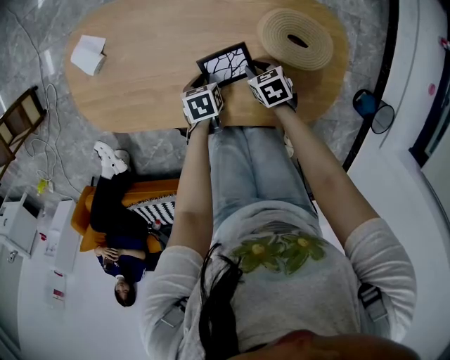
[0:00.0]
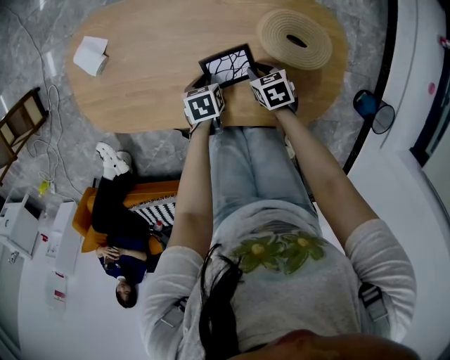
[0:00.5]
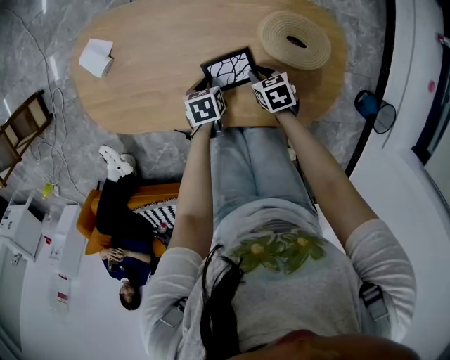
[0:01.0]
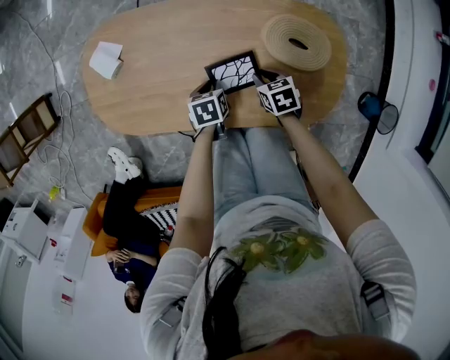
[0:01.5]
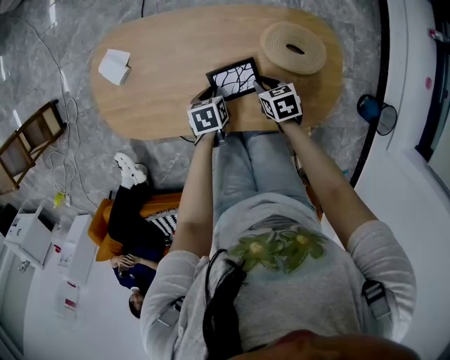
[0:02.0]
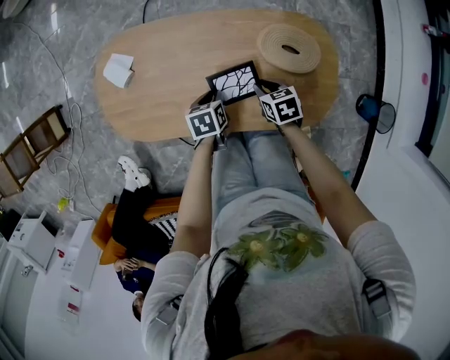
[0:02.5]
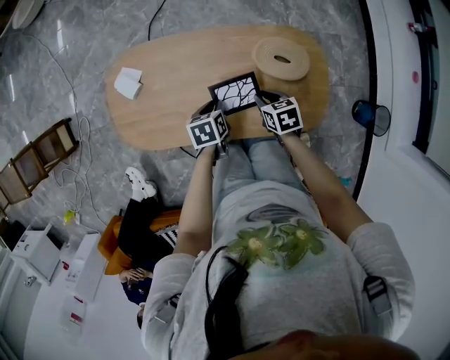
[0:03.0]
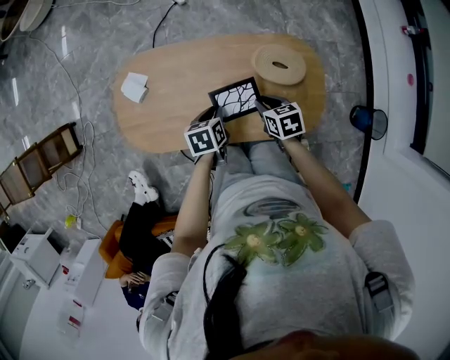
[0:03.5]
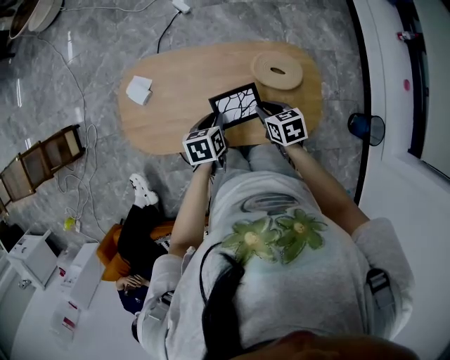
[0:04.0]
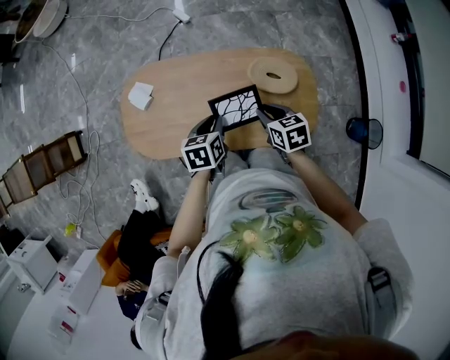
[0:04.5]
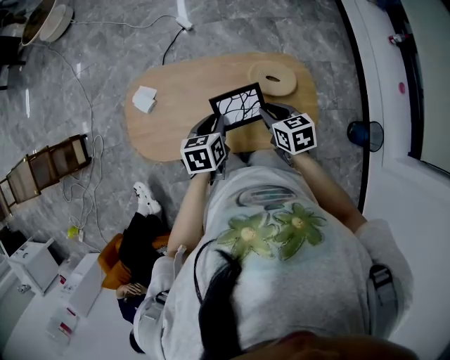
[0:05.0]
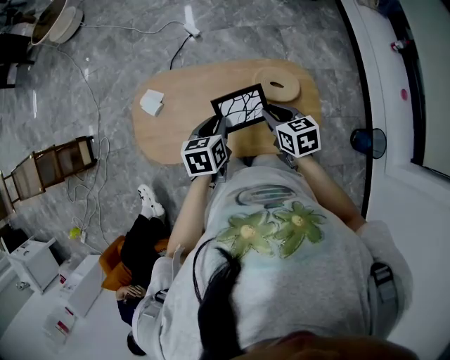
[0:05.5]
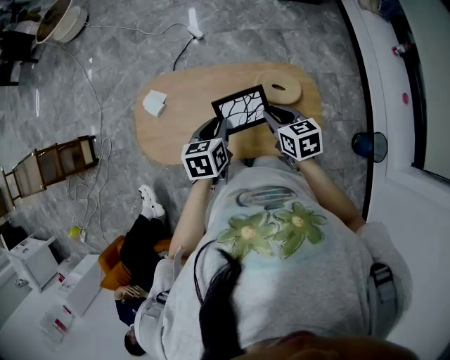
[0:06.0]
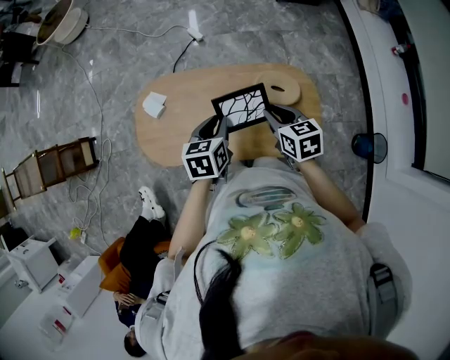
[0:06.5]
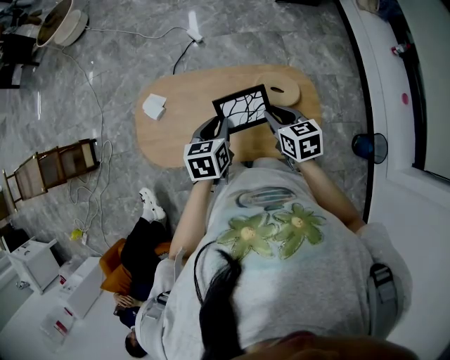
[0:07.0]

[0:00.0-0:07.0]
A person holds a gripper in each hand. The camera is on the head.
0.0 to 2.0 s: The two grippers go about 10 cm upward.
2.0 to 3.5 s: Both grippers travel together upward, about 15 cm.
3.5 to 5.0 s: Both grippers travel together upward, approximately 15 cm.
5.0 to 7.0 s: Both grippers travel together upward, about 5 cm.

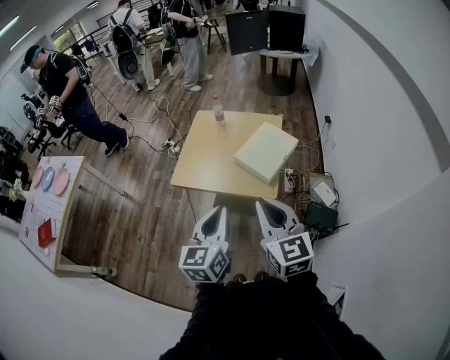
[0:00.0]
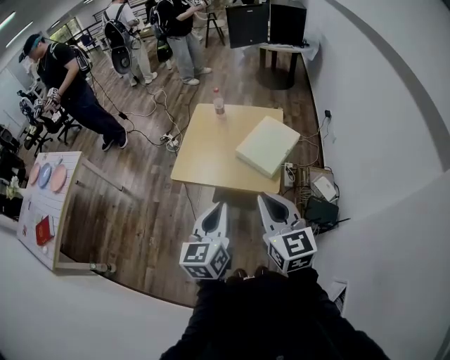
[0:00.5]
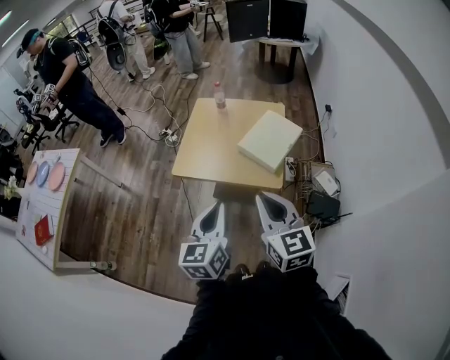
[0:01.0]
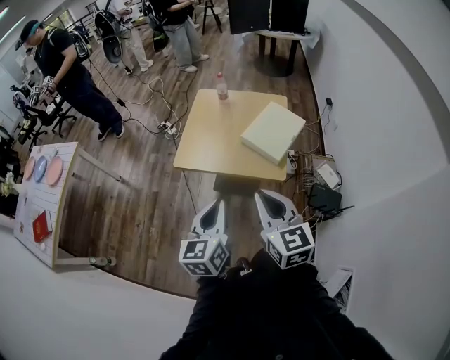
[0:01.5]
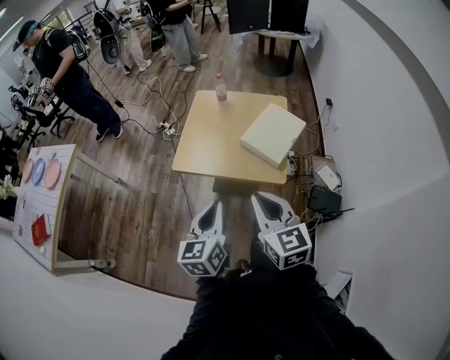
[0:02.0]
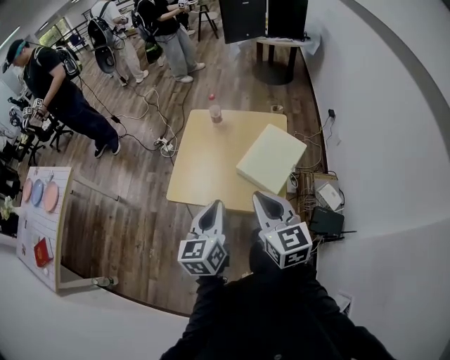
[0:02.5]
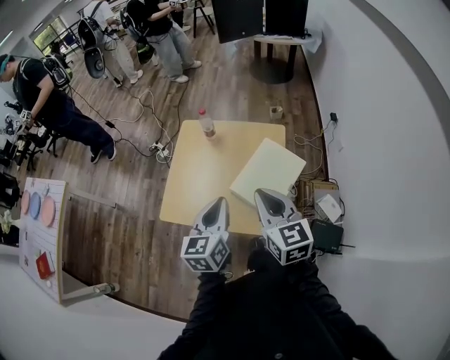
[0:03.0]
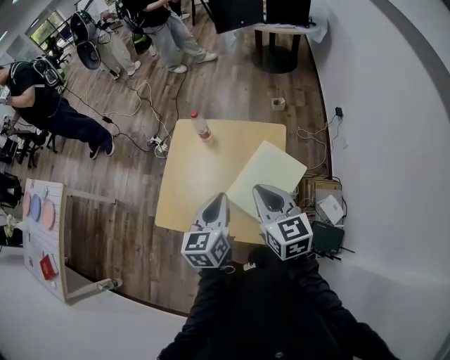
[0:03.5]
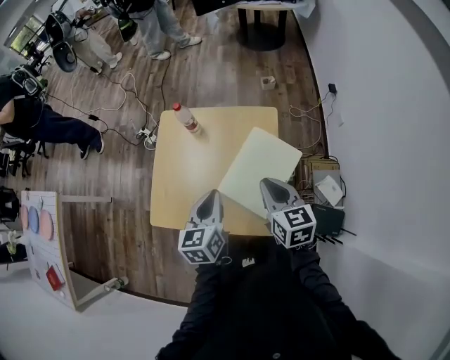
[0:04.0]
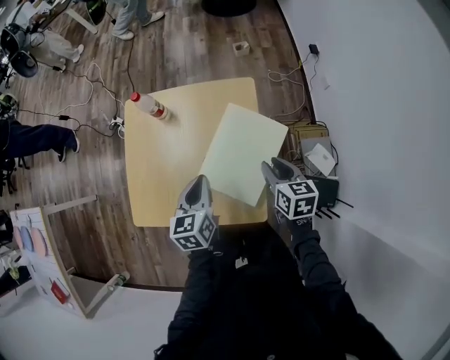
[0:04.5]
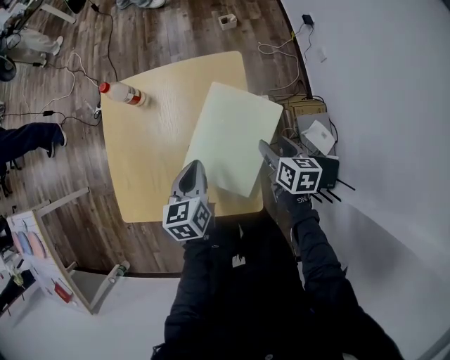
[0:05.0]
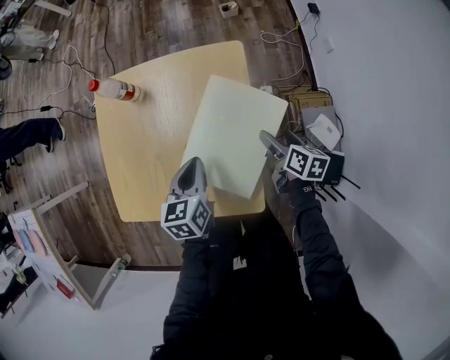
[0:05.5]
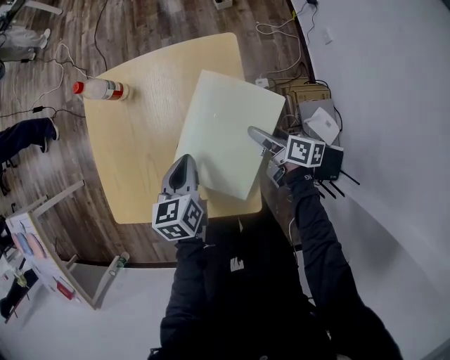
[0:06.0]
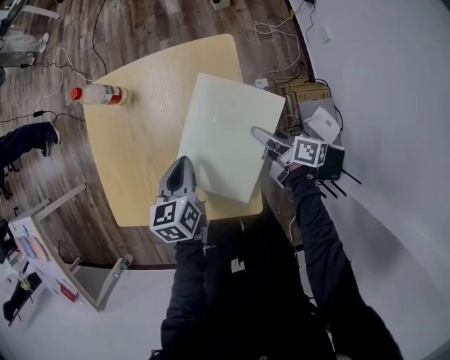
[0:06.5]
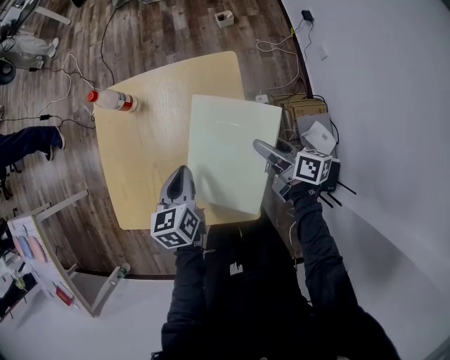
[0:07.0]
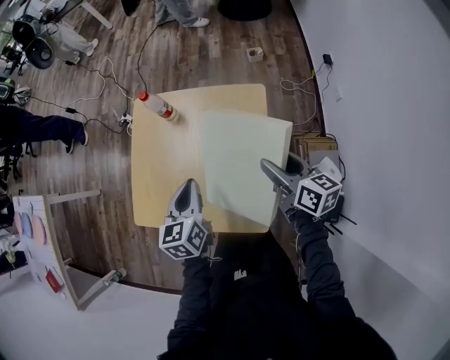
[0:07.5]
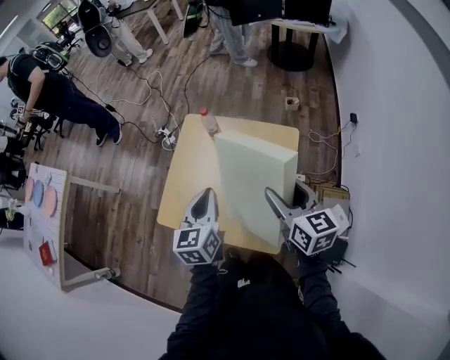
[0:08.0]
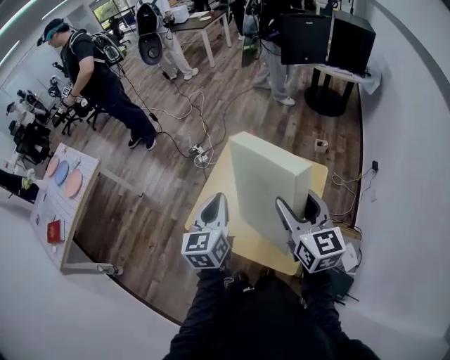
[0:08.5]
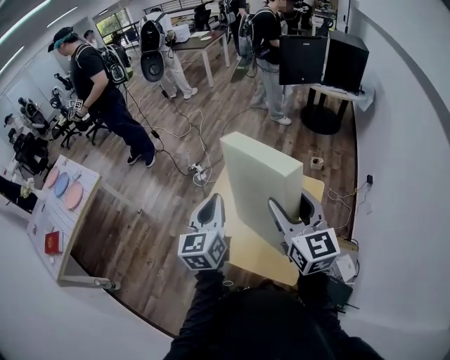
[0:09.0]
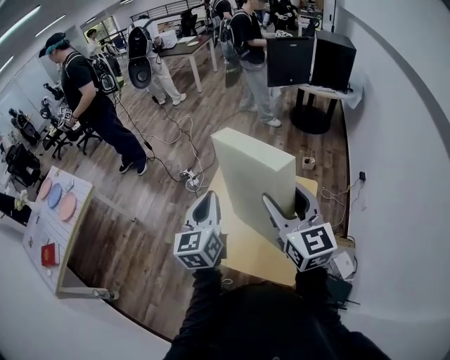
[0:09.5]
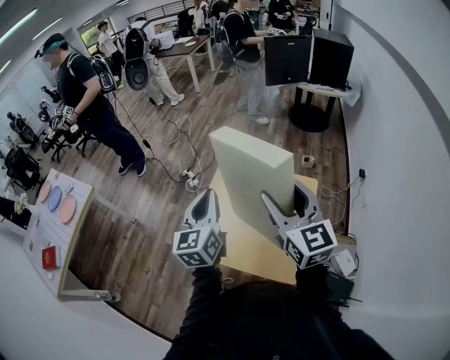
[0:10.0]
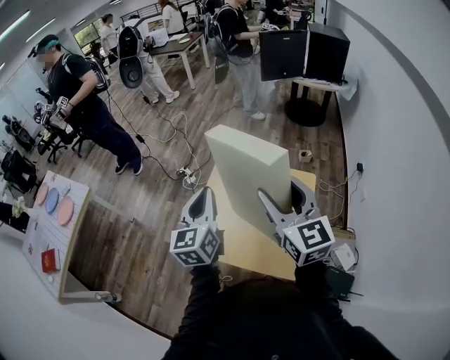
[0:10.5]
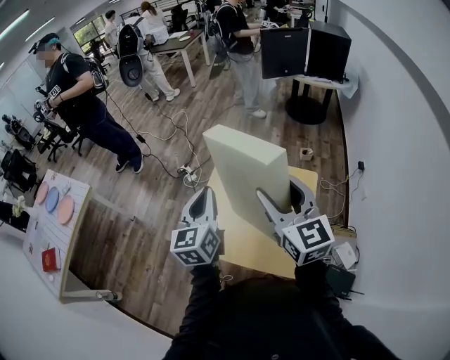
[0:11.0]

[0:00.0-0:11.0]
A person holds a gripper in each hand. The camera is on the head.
0.0 to 2.0 s: The grippers both shift to the left and downward by about 10 cm.
2.0 to 3.5 s: Both grippers move forward and to the right, some 40 cm.
3.5 to 5.5 s: The left gripper heads downward, covering roughly 25 cm, and swivels approximately 20 degrees. Meanwhile the right gripper goes roughly 40 cm downward and to the right, twists roughly 50 degrees clockwise, seen from behind, and opens.
5.5 to 7.5 s: The right gripper goes about 20 cm upward, and changes its angle by about 30 degrees, while the left gripper moves upward and to the left, some 10 cm.
7.5 to 9.0 s: Both grippers travel together upward and to the left, some 35 cm. The right gripper rolls counterclockwise, seen from behind, by about 40 degrees, while the left gripper swivels about 30 degrees.
9.0 to 11.0 s: The grippers move only a little.

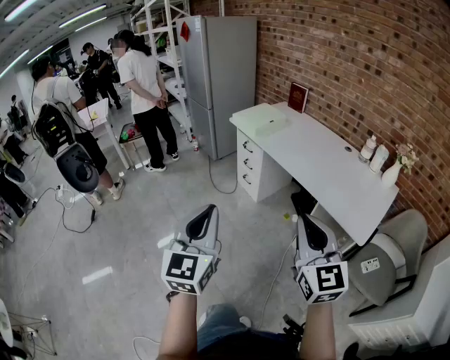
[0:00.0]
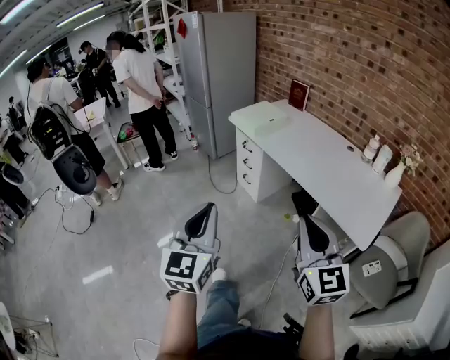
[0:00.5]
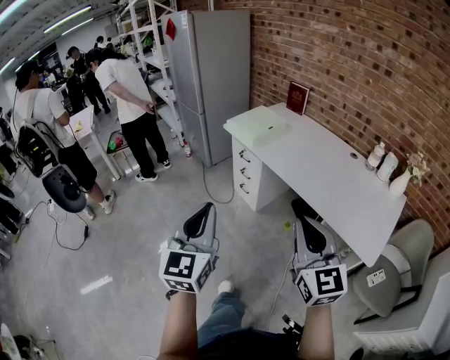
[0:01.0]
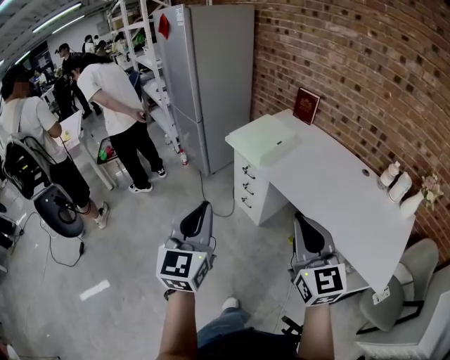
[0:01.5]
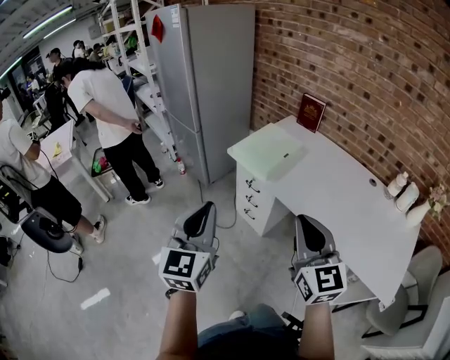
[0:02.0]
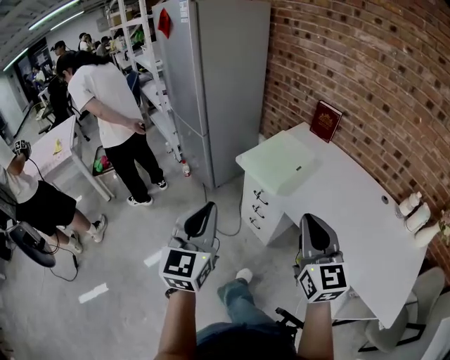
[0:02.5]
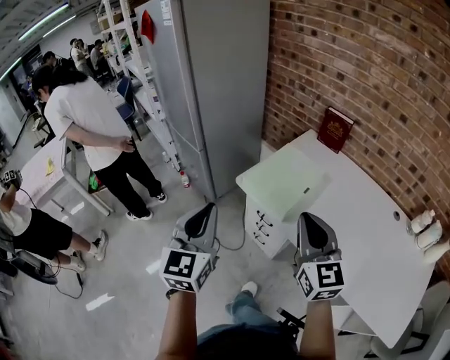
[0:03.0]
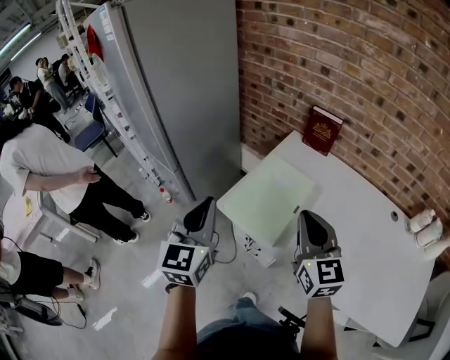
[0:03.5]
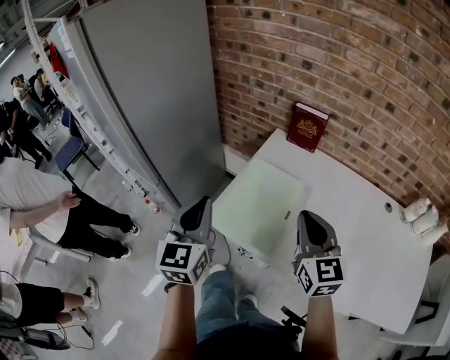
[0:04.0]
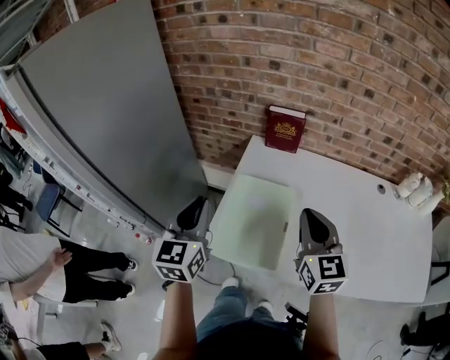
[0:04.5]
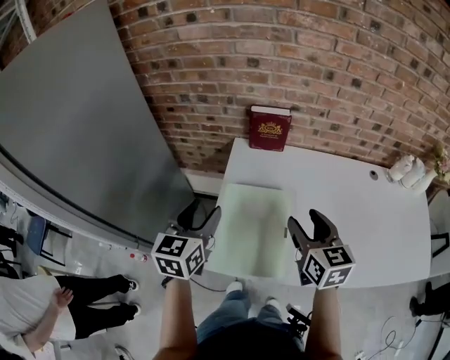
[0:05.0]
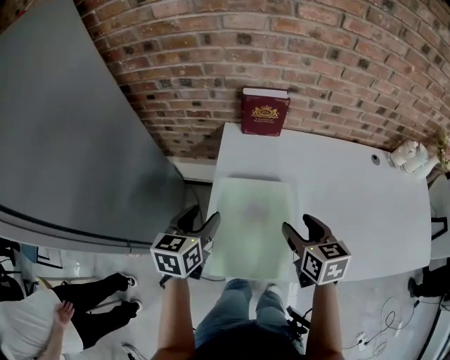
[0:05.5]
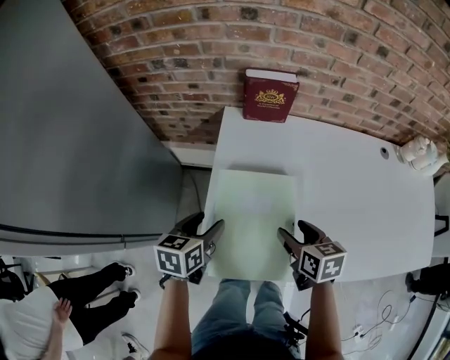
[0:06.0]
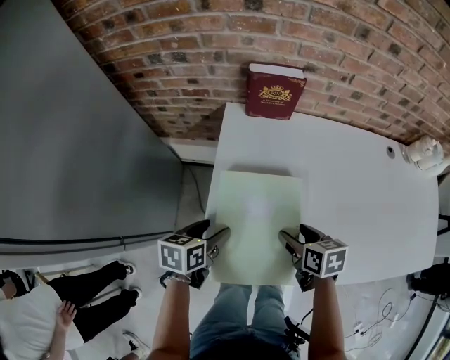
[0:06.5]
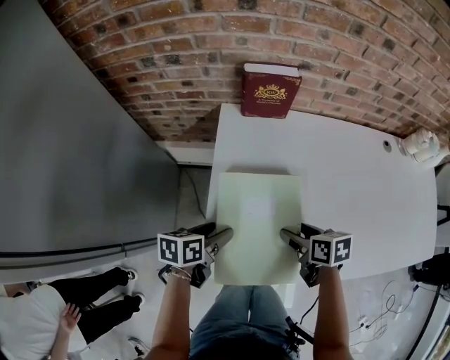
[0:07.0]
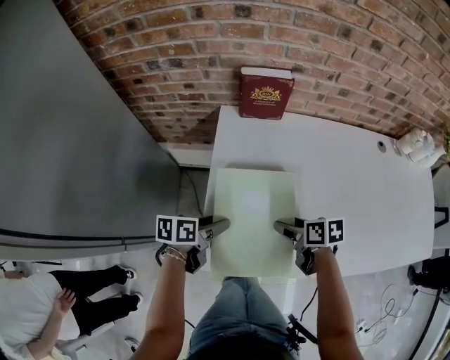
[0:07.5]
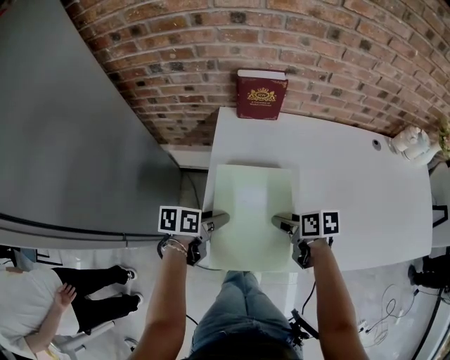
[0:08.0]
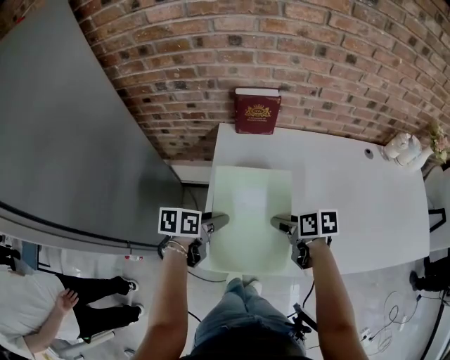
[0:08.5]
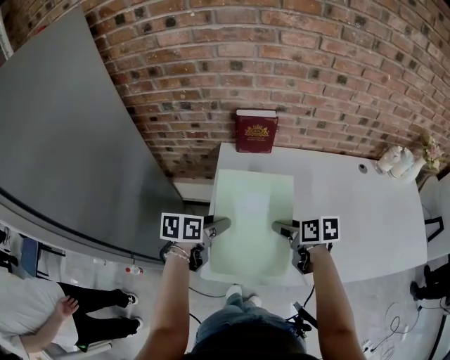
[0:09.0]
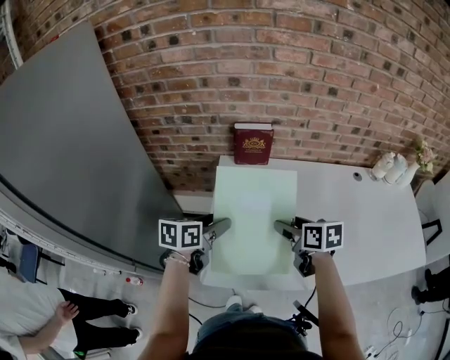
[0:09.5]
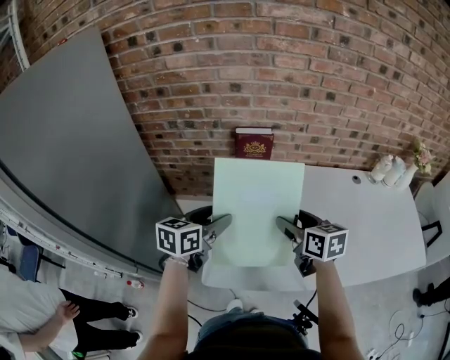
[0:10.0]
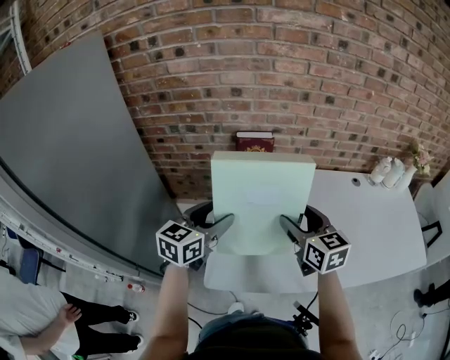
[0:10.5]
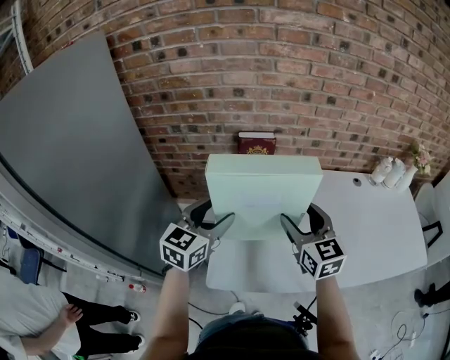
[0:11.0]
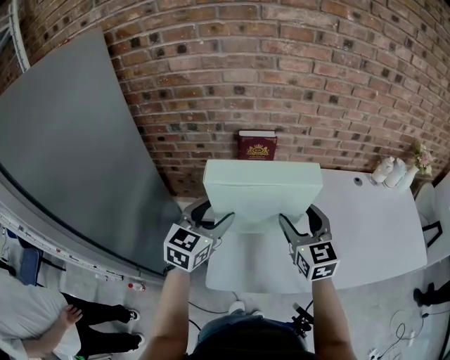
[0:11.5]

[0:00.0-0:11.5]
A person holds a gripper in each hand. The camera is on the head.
0.0 to 2.0 s: The two grippers travel together, forward, roughly 40 cm.
2.0 to 4.0 s: Both grippers are carried forward, some 40 cm. The right gripper turns by roughly 20 degrees.
4.0 to 6.0 s: Both grippers travel together downward, approximately 20 cm. The left gripper angles its fingers downward, by approximately 30 degrees, and opens up; the right gripper tilts its fingers approximately 30 degrees downward, and opens its fingers.
6.0 to 7.5 s: The two grippers go approximately 5 cm downward. The left gripper turns by about 30 degrees. The right gripper swivels roughly 20 degrees.
7.5 to 9.5 s: The two grippers go roughly 15 cm upward. The left gripper changes its angle by roughly 20 degrees. Meanwhile the right gripper swivels some 20 degrees.
9.5 to 11.5 s: Both grippers travel together upward, roughly 10 cm. The right gripper rotates about 50 degrees, while the left gripper swivels approximately 40 degrees.
